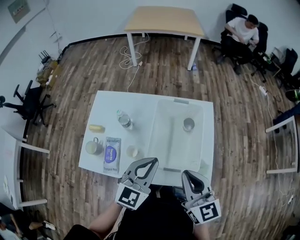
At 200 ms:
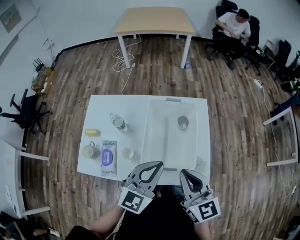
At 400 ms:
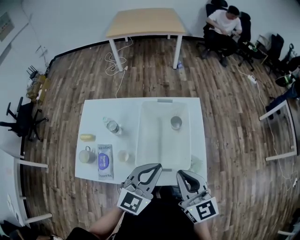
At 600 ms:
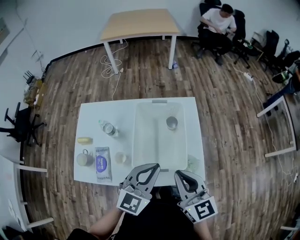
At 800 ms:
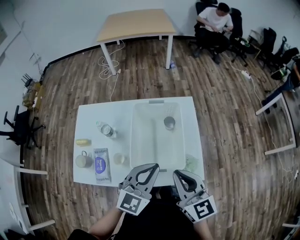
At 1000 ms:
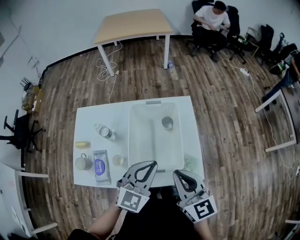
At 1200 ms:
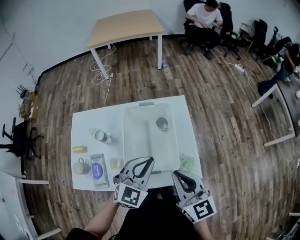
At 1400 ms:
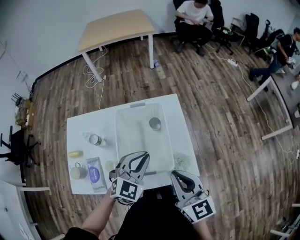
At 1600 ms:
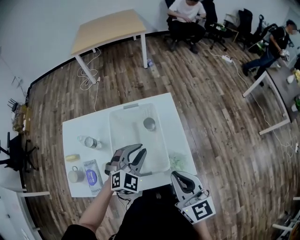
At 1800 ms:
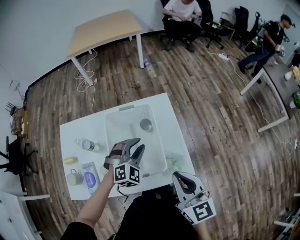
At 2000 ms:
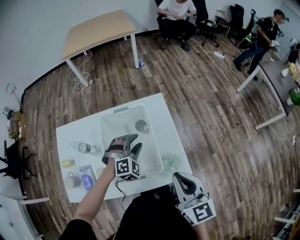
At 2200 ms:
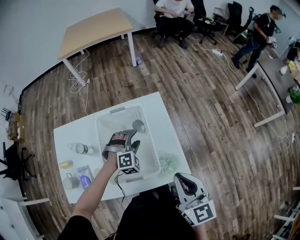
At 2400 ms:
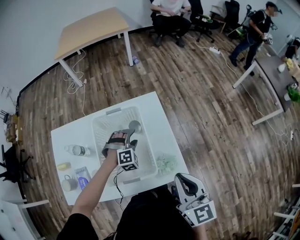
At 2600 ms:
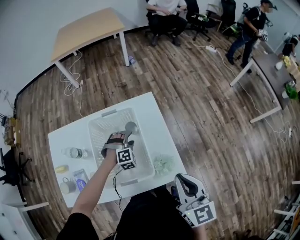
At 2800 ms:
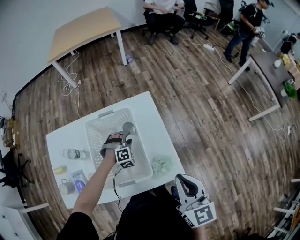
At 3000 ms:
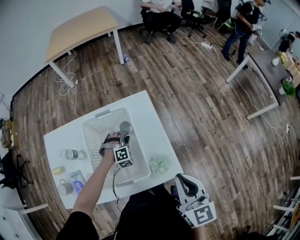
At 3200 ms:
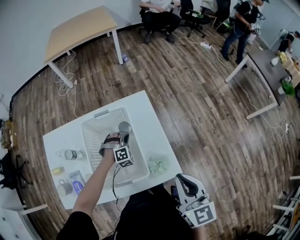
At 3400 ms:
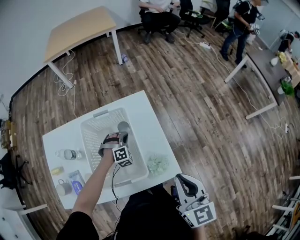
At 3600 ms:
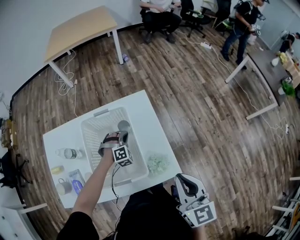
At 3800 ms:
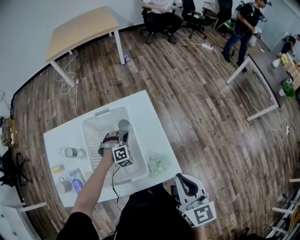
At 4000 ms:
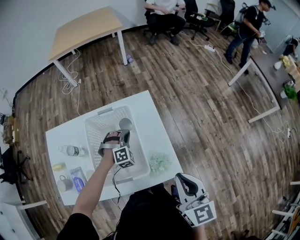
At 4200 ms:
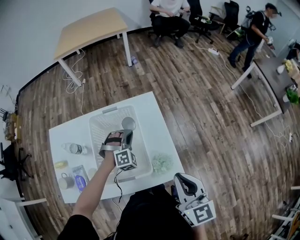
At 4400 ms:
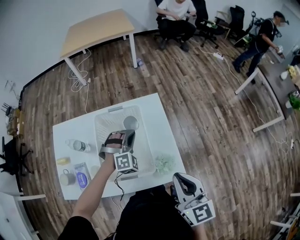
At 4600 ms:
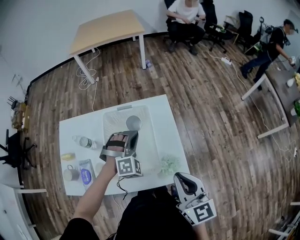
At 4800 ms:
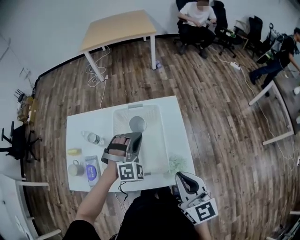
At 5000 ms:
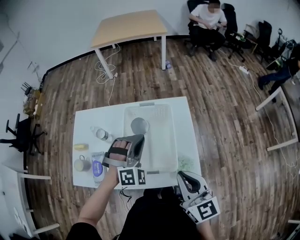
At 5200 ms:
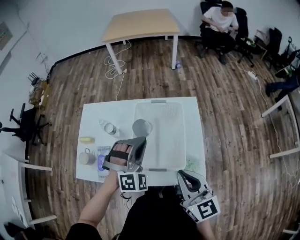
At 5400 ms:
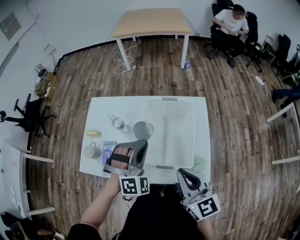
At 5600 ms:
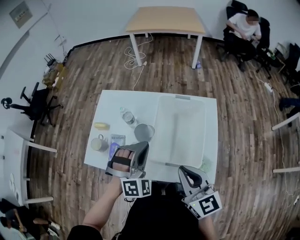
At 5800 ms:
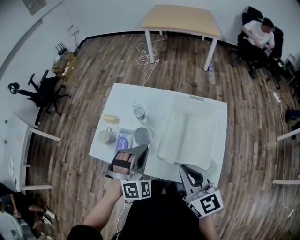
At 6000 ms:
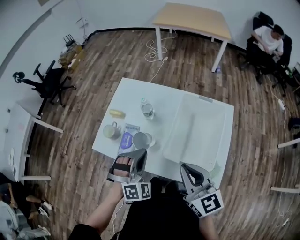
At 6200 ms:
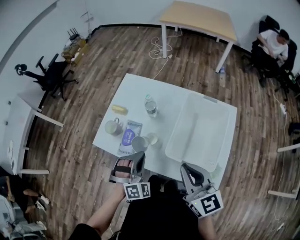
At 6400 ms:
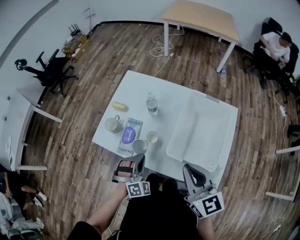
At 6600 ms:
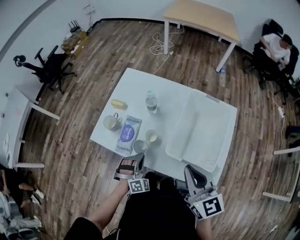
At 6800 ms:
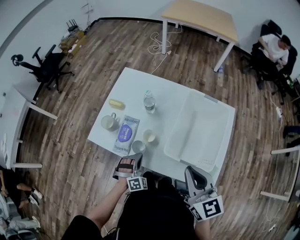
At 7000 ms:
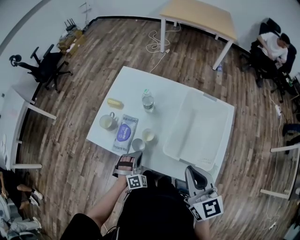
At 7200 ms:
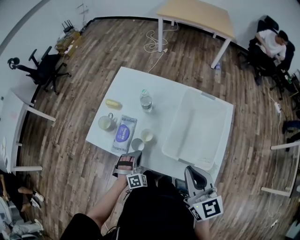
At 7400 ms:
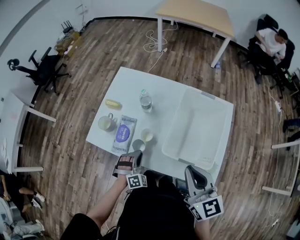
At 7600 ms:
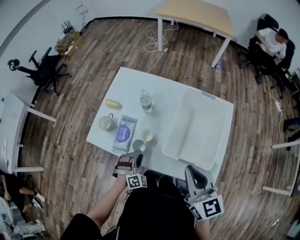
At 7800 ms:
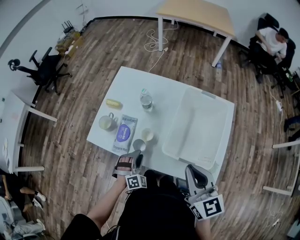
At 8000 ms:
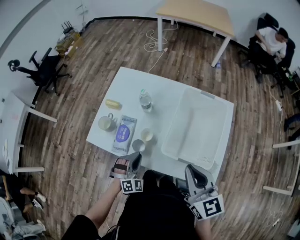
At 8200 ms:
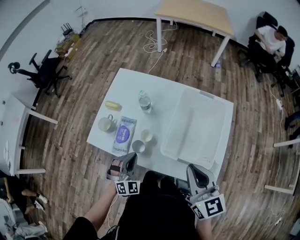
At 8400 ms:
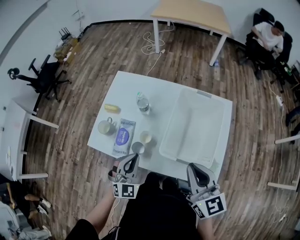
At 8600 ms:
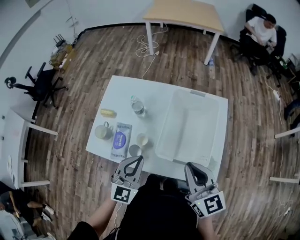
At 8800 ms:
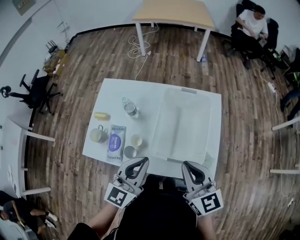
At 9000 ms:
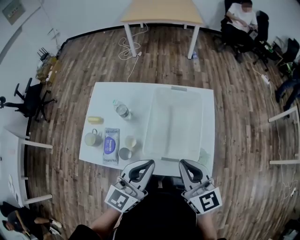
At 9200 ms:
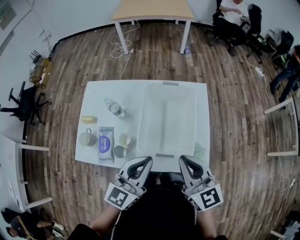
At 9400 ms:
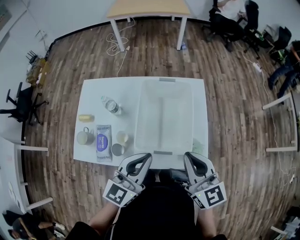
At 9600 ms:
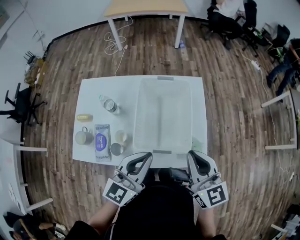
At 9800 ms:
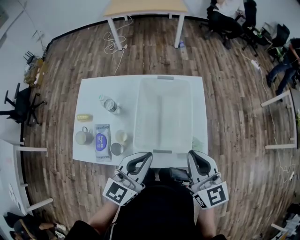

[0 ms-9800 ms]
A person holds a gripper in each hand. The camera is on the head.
0 ms to 1400 ms: The left gripper is displaced to the right and forward by some 10 cm, and swivels approximately 20 degrees, while the right gripper goes some 5 cm to the right.
1400 ms to 2800 ms: The left gripper is displaced downward and forward by some 30 cm, turns by approximately 50 degrees, and opens its fingers. The right gripper goes some 10 cm to the right.
2800 ms to 4200 ms: The left gripper shifts about 10 cm upward, and closes up.
4200 ms to 5600 ms: The left gripper ends up roughly 30 cm from where it was, and swivels about 30 degrees. Meanwhile the right gripper changes place by approximately 20 cm, and turns by some 30 degrees.
5600 ms to 7000 ms: The left gripper is displaced downward and to the left by approximately 25 cm, and turns by approximately 20 degrees.
7000 ms to 8400 ms: The left gripper heads upward, covering approximately 15 cm, turns by some 40 degrees, and opens and closes again.
8400 ms to 9800 ms: The left gripper moves about 20 cm, and swivels some 50 degrees. The right gripper shifts by some 10 cm.

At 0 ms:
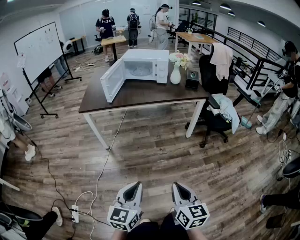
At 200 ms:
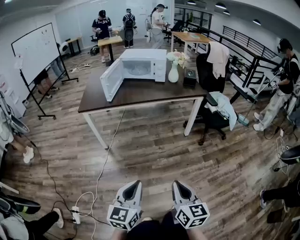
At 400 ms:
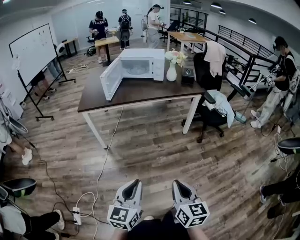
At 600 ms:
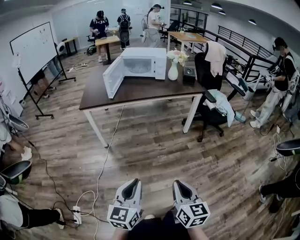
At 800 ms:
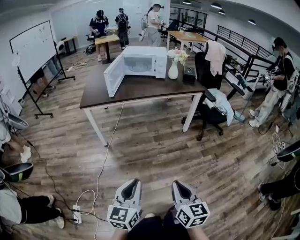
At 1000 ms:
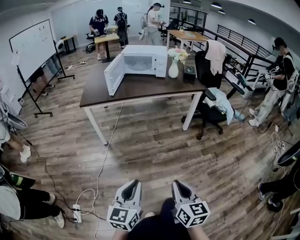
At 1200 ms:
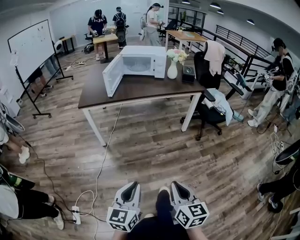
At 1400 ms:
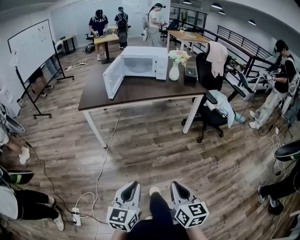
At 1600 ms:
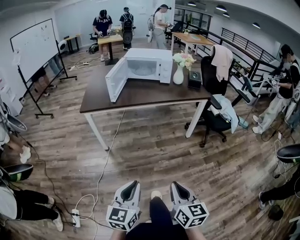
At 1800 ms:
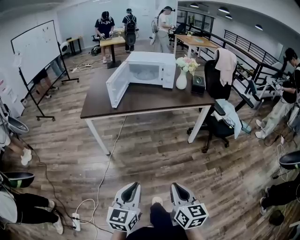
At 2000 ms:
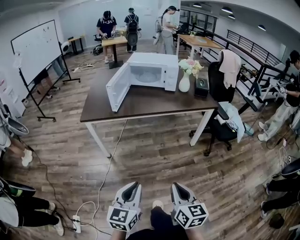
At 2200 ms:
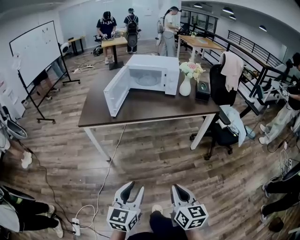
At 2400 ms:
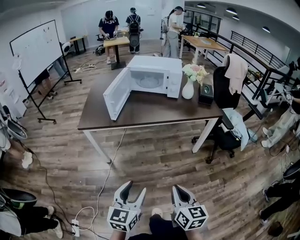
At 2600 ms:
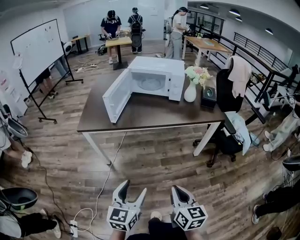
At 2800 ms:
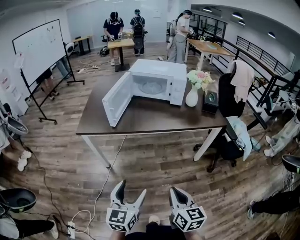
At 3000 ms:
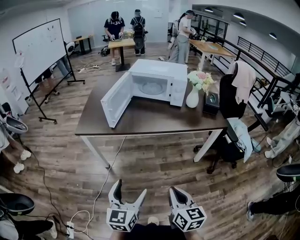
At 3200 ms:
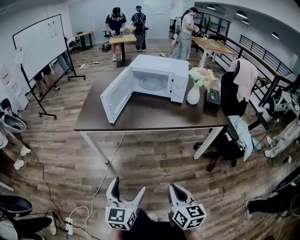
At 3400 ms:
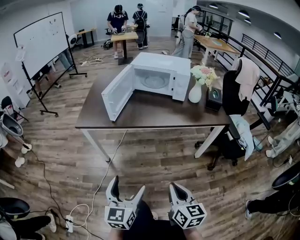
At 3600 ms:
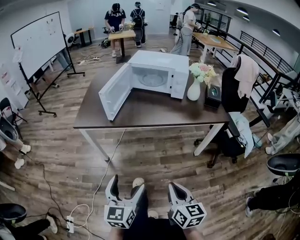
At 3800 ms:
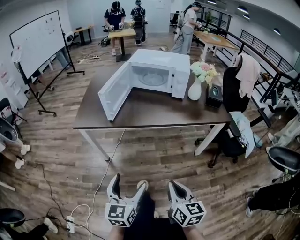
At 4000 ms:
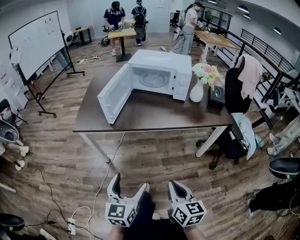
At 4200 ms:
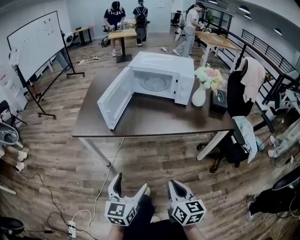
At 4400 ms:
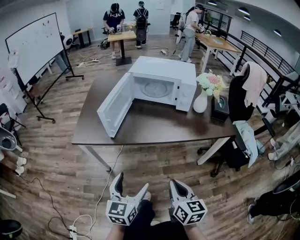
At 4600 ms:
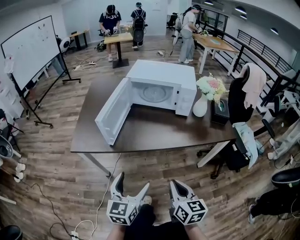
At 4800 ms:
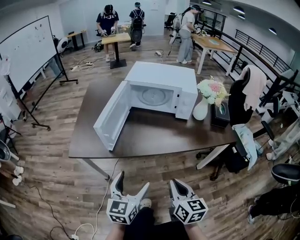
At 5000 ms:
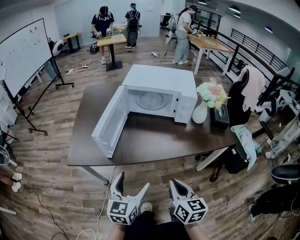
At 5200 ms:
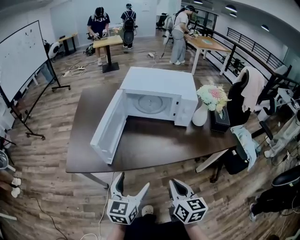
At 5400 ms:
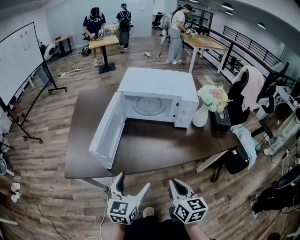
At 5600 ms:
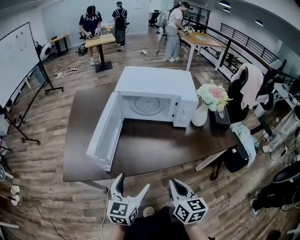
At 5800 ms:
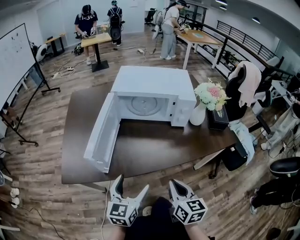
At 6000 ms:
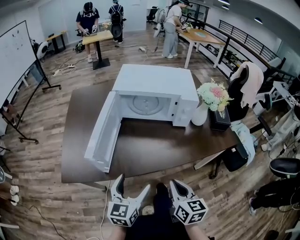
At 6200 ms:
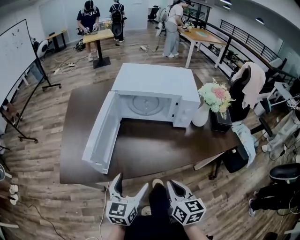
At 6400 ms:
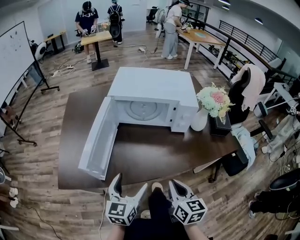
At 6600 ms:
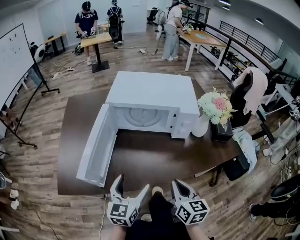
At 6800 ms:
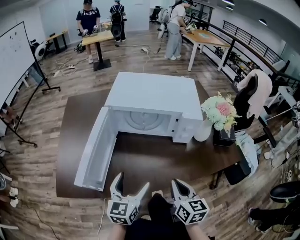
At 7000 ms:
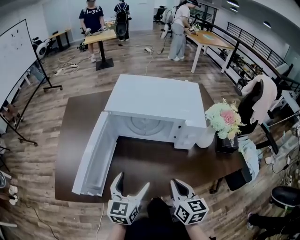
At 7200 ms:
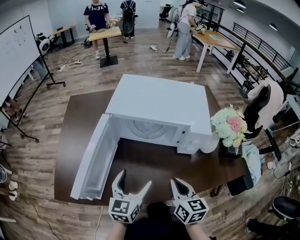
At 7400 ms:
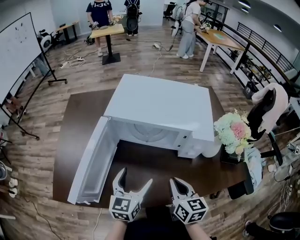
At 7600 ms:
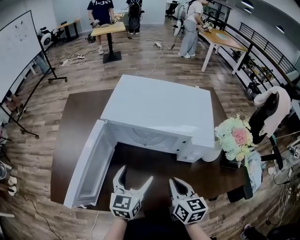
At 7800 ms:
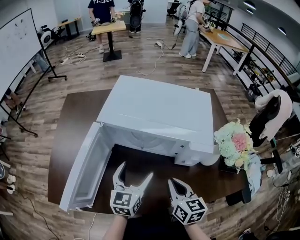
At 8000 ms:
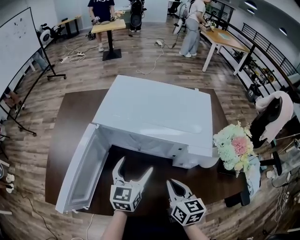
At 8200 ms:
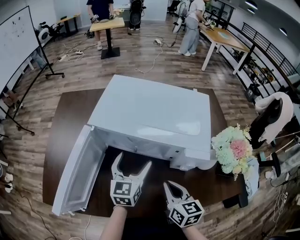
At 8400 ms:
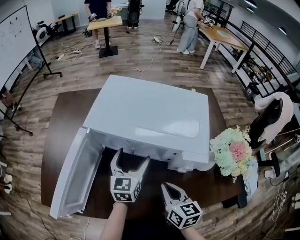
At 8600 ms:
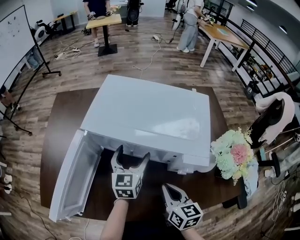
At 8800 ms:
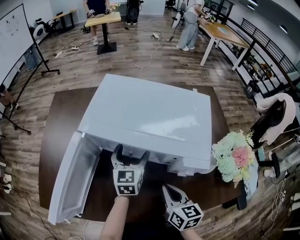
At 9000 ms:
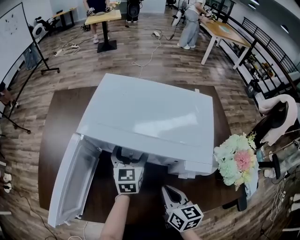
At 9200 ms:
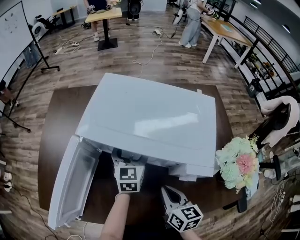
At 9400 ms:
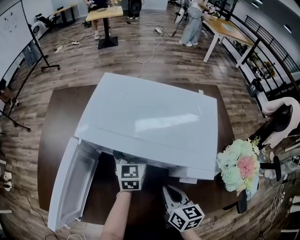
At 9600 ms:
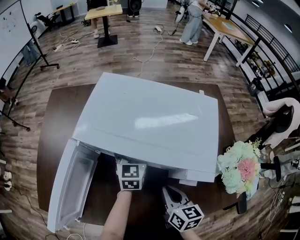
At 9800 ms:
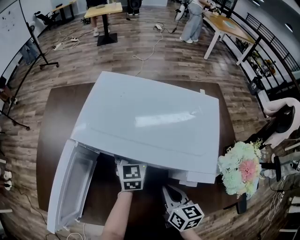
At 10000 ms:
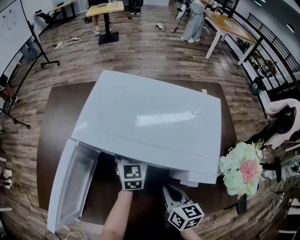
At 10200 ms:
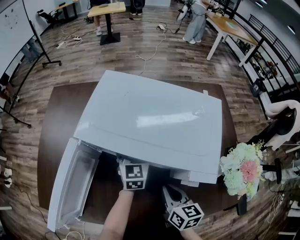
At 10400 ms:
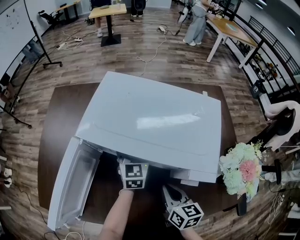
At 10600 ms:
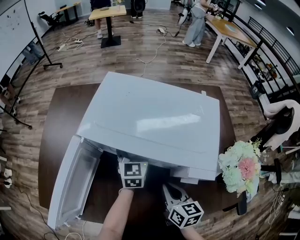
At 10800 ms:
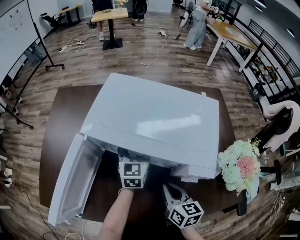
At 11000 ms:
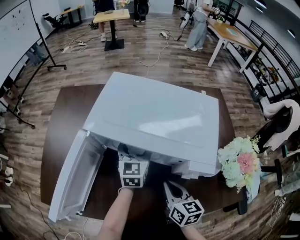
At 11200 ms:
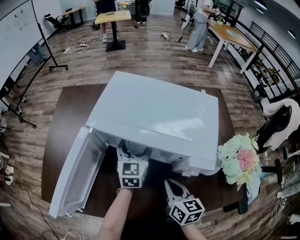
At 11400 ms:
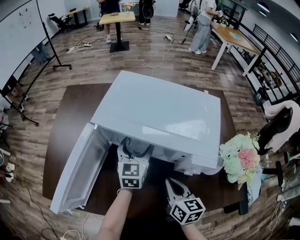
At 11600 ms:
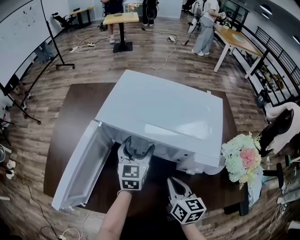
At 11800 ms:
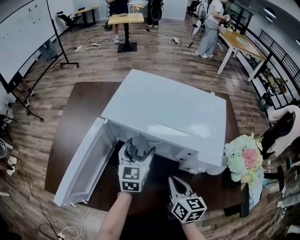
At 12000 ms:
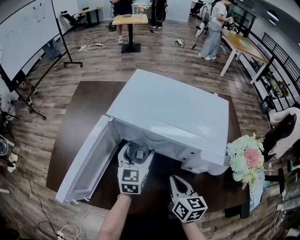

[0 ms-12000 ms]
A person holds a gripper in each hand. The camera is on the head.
0 ms to 1600 ms: The two grippers go some 10 cm to the left.
1600 ms to 3000 ms: Both grippers move forward, some 25 cm. The left gripper opens up.
3000 ms to 4400 ms: Both grippers travel together forward, some 15 cm.
4400 ms to 6000 ms: Both grippers move forward, some 20 cm.
6000 ms to 7600 ms: Both grippers travel together forward, roughly 25 cm.
7600 ms to 9000 ms: The right gripper is displaced forward by some 5 cm. Meanwhile the left gripper moves forward, some 20 cm.
9000 ms to 10400 ms: The grippers make only small movements.
10400 ms to 12000 ms: The left gripper travels backward and to the left by approximately 10 cm.

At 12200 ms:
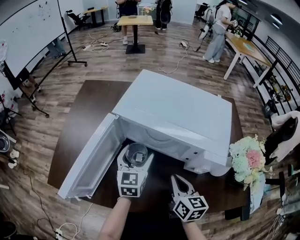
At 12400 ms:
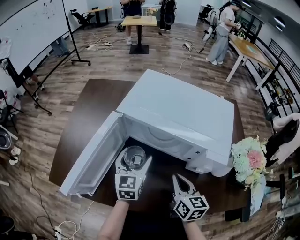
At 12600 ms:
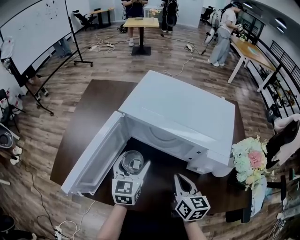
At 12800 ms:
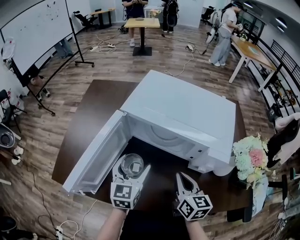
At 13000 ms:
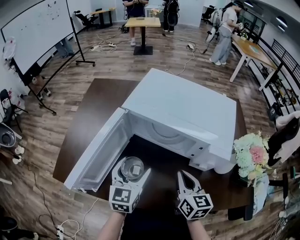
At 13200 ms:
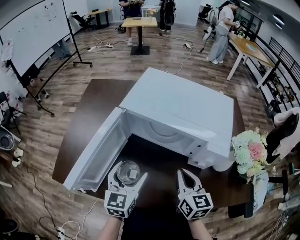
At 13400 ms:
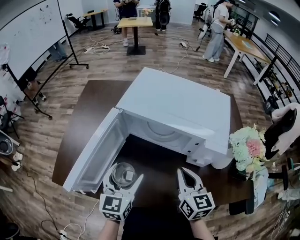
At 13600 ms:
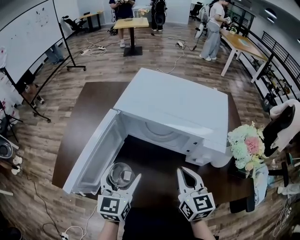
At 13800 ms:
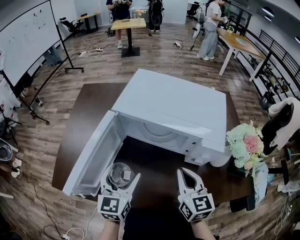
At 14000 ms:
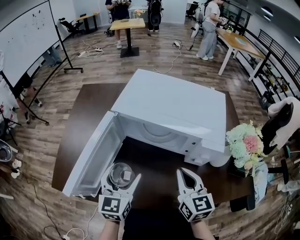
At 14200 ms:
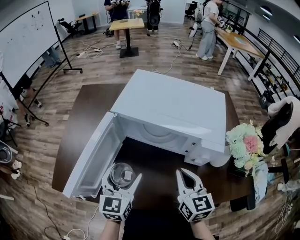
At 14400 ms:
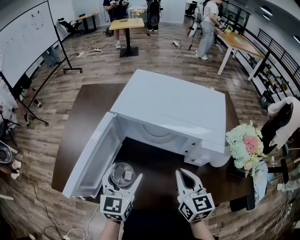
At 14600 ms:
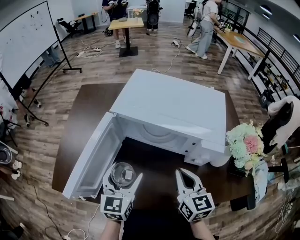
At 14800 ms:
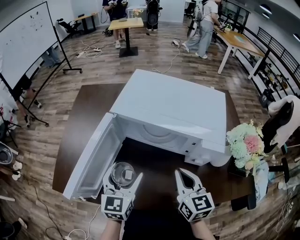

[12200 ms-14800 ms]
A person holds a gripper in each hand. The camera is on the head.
12200 ms to 13400 ms: The right gripper moves upward, roughly 5 cm; the left gripper travels backward and to the left by approximately 15 cm.
13400 ms to 14800 ms: The grippers stay close to where they were, moving slightly.
